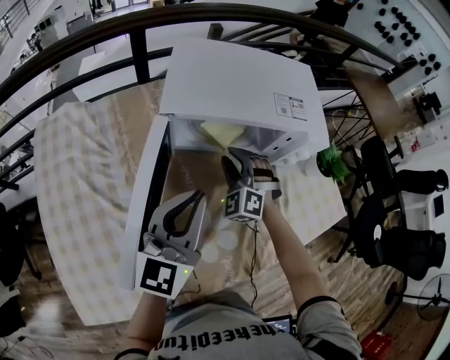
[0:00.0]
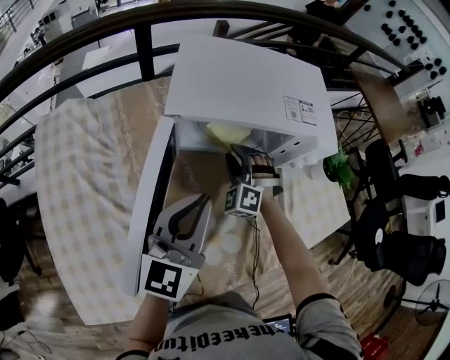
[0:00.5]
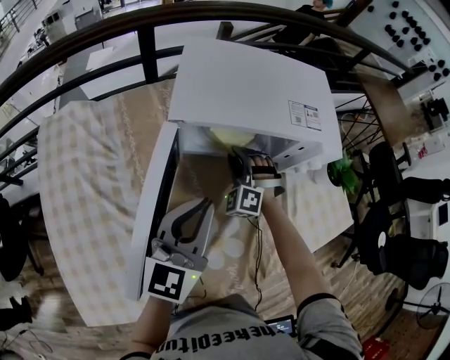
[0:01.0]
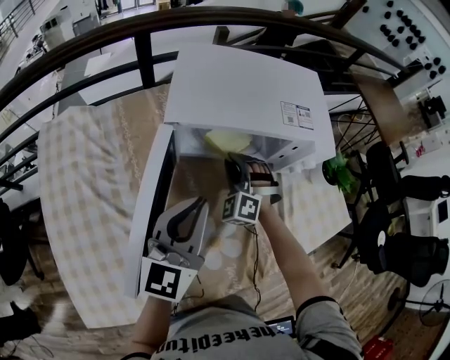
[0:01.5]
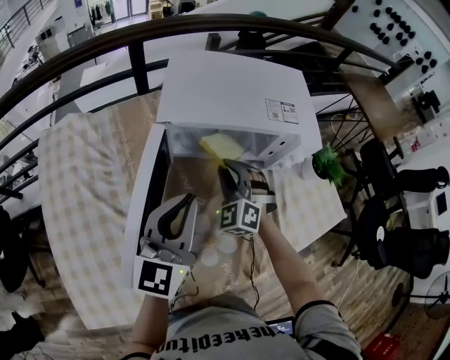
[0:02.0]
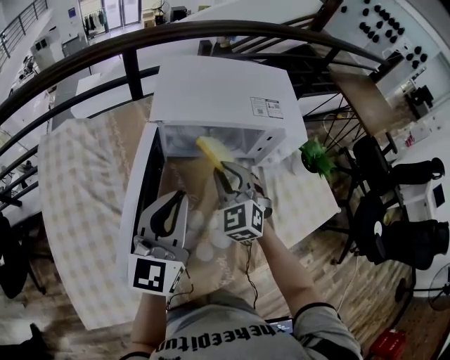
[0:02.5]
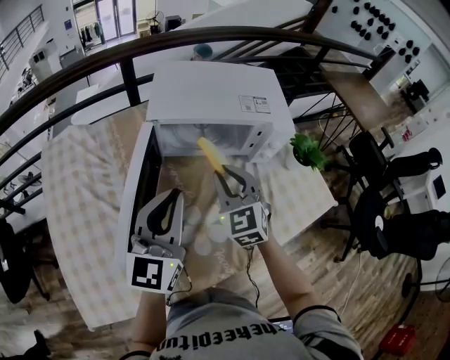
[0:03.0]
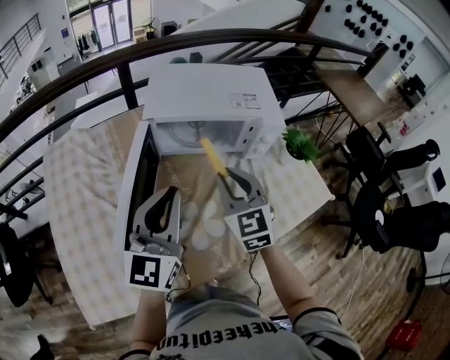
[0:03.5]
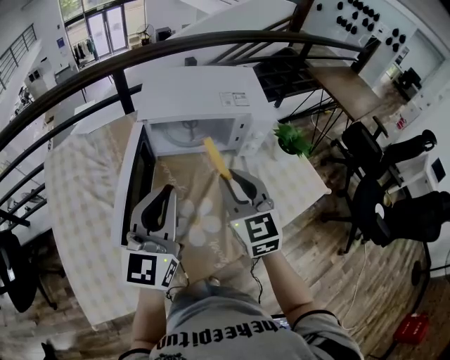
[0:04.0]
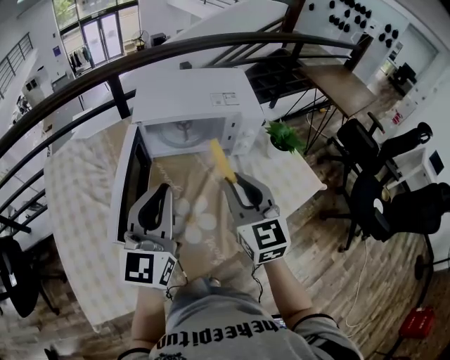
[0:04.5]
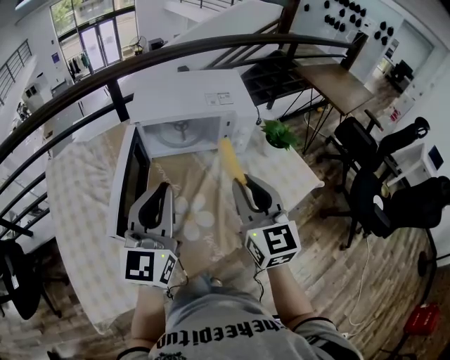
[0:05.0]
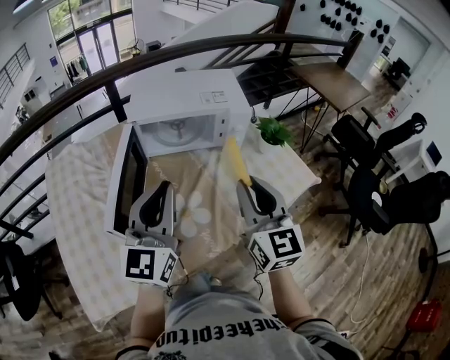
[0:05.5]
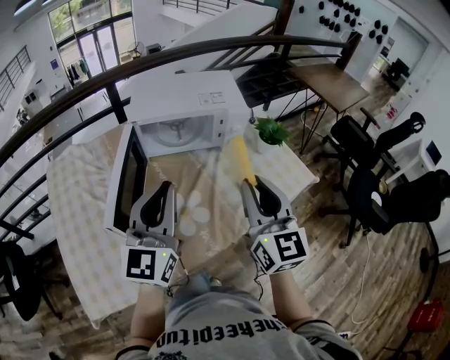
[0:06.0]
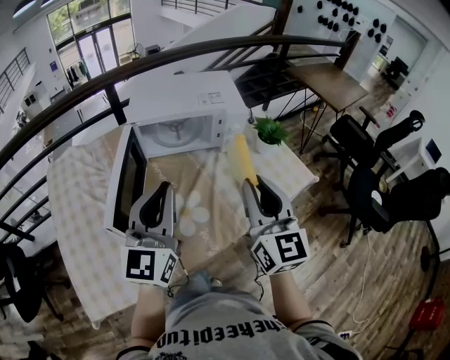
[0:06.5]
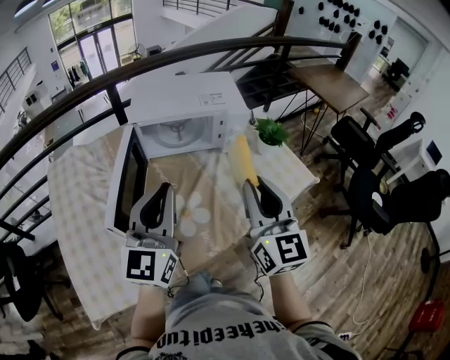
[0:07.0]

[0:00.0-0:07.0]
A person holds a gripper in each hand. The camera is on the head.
0:00.0 to 0:02.0: The grippers stay close to where they were, moving slightly.
0:02.0 to 0:03.5: The left gripper heads upward and backward, covering some 10 cm; the right gripper shifts approximately 15 cm upward and backward, and swivels approximately 40 degrees.
0:03.5 to 0:05.0: The right gripper goes roughly 15 cm backward, to the right and upward, while the left gripper travels backward by some 5 cm.
0:05.0 to 0:07.0: The right gripper shifts by about 5 cm.

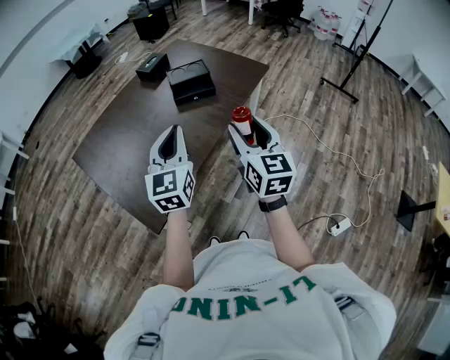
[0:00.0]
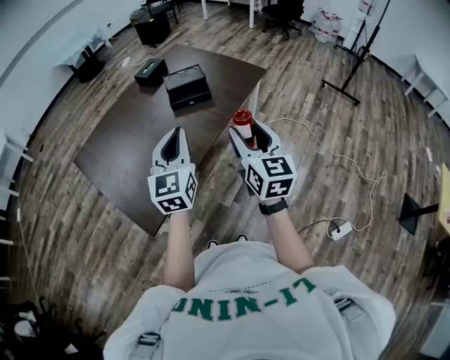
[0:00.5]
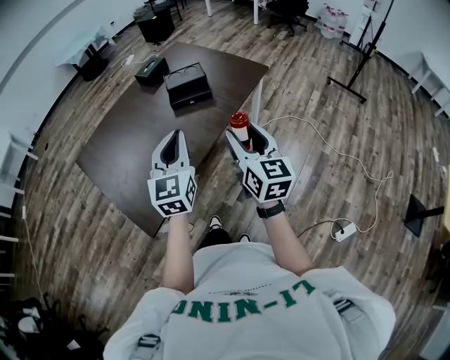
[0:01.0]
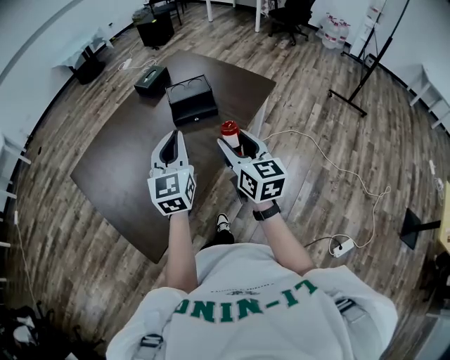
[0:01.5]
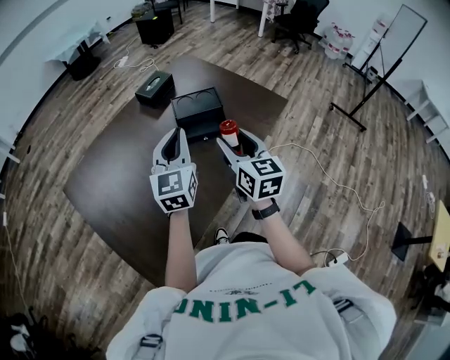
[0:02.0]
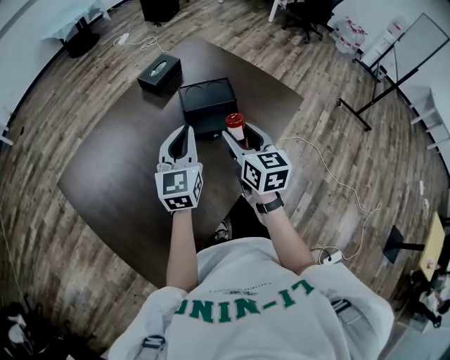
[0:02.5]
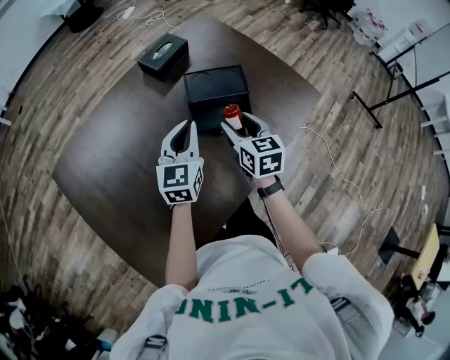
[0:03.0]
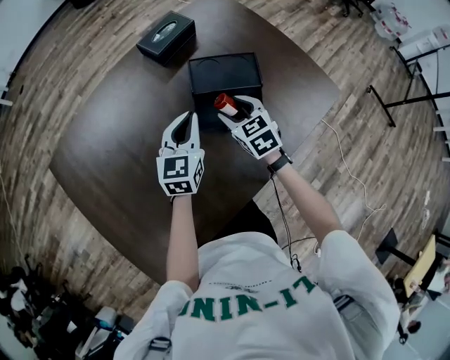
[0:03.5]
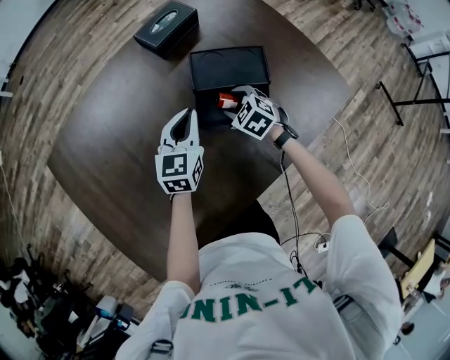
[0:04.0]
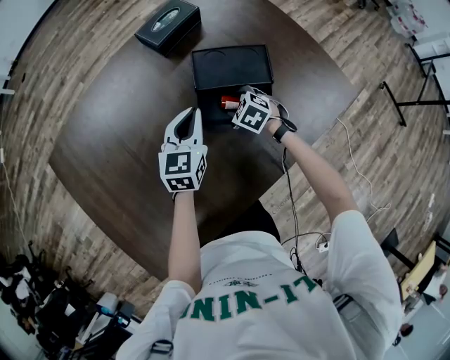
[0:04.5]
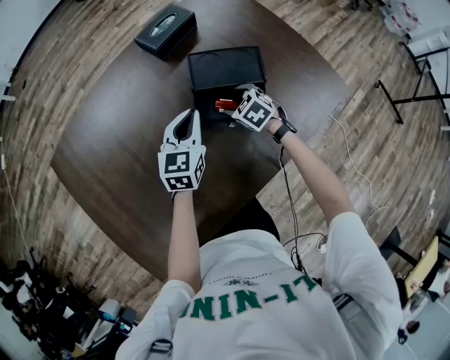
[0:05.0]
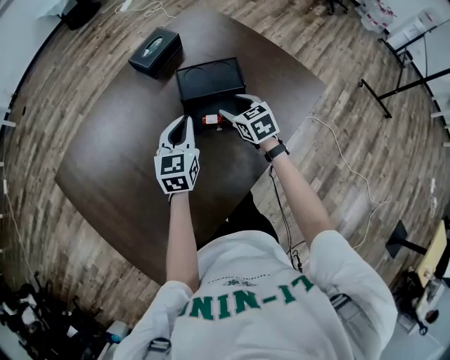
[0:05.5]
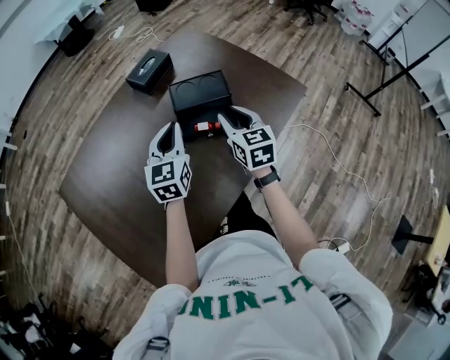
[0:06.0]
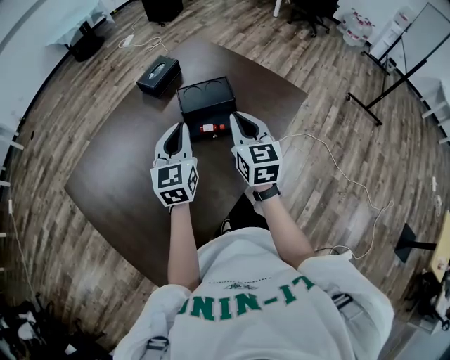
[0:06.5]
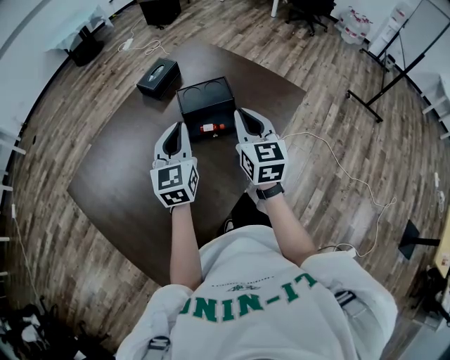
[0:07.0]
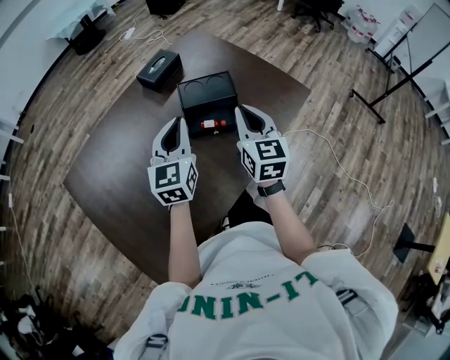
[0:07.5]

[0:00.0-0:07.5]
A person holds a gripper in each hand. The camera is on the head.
0:00.0 to 0:02.0: Both grippers travel together forward, approximately 30 cm.
0:02.0 to 0:04.0: The grippers both shift downward and forward by approximately 40 cm. The right gripper tips its fingers downward by some 40 degrees. Meanwhile the left gripper changes its angle by about 20 degrees.
0:04.0 to 0:05.5: The right gripper moves upward, about 10 cm, and changes its angle by roughly 40 degrees. Meanwhile the left gripper goes about 10 cm upward and backward.
0:05.5 to 0:07.5: Both grippers move upward and backward, approximately 20 cm. The right gripper changes its angle by some 30 degrees, and closes.

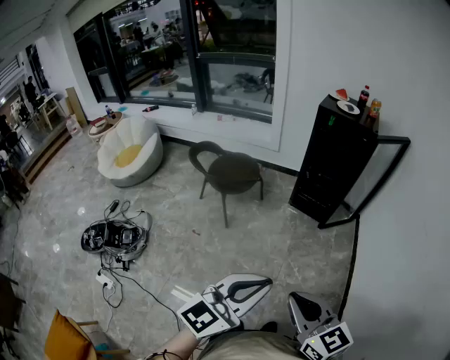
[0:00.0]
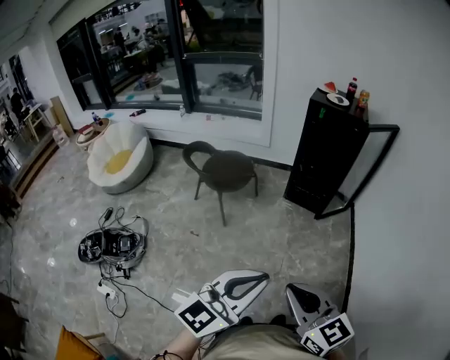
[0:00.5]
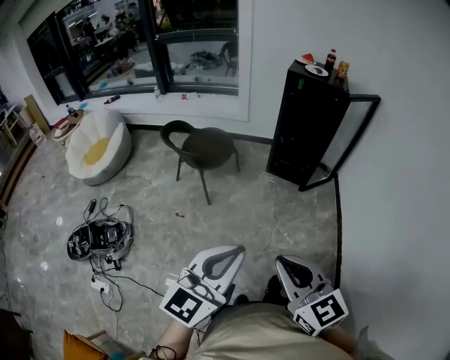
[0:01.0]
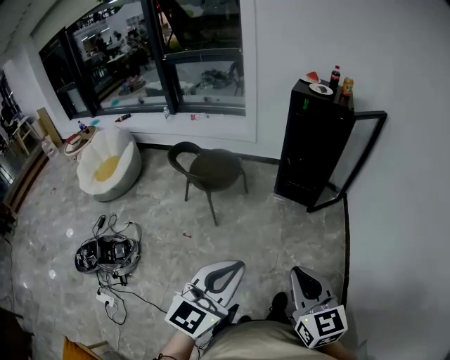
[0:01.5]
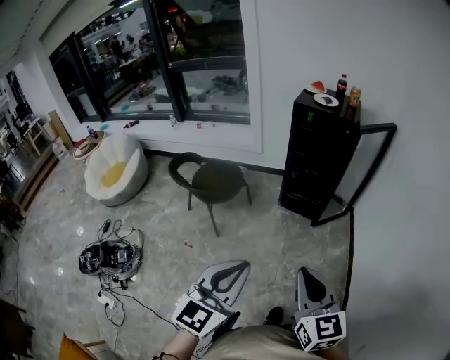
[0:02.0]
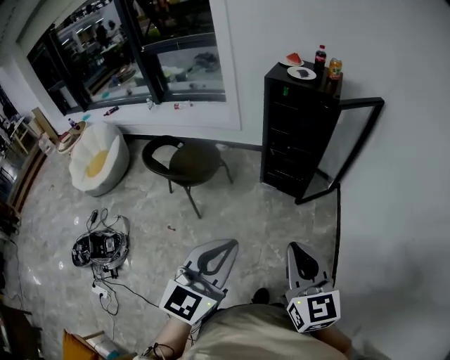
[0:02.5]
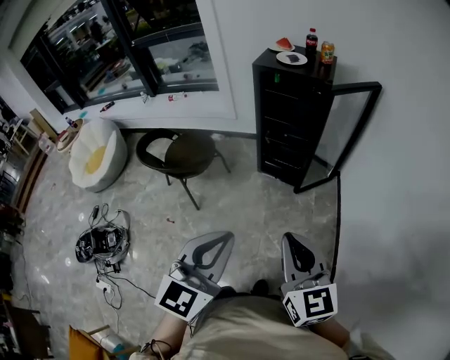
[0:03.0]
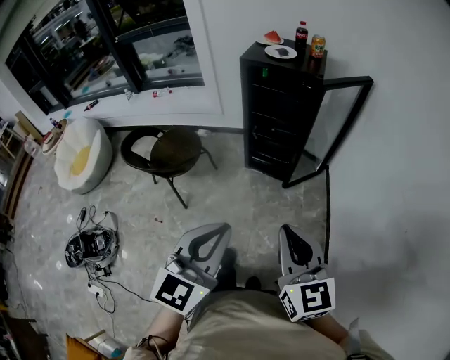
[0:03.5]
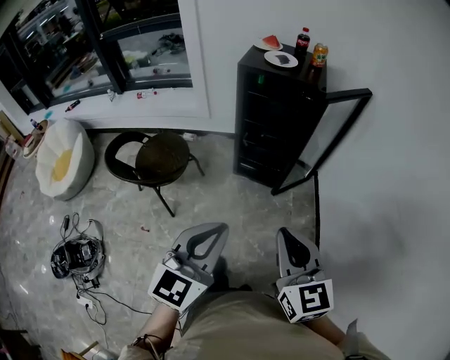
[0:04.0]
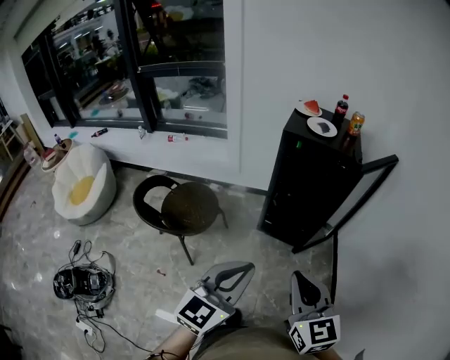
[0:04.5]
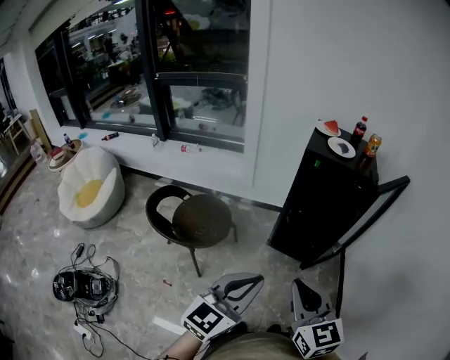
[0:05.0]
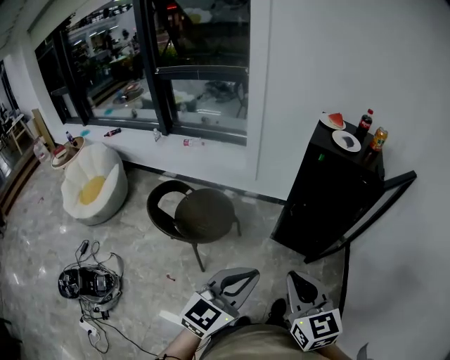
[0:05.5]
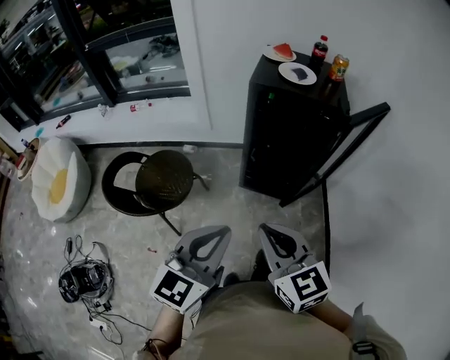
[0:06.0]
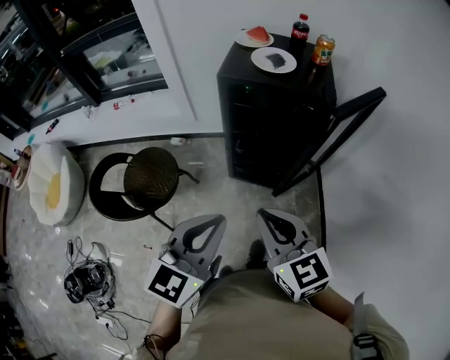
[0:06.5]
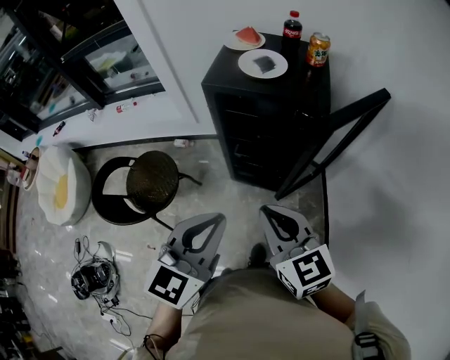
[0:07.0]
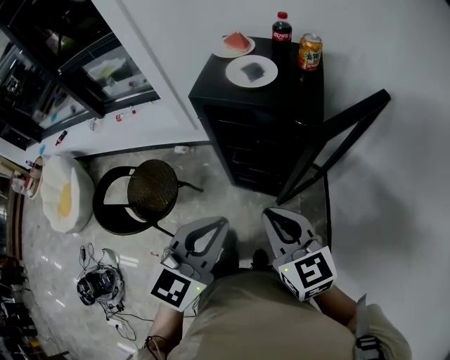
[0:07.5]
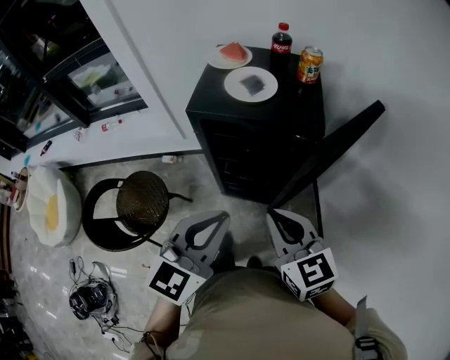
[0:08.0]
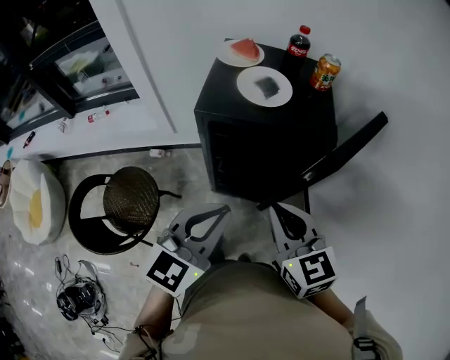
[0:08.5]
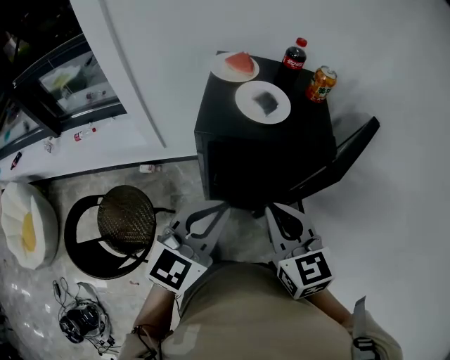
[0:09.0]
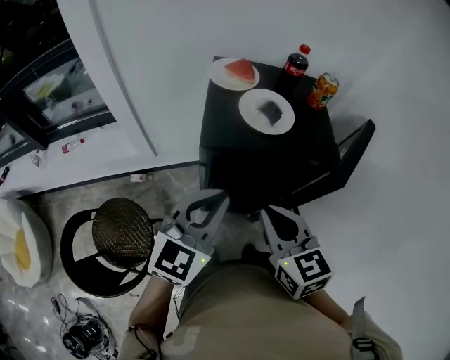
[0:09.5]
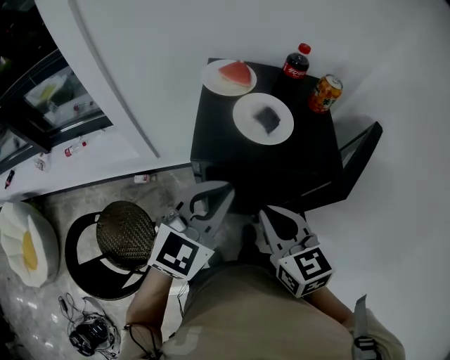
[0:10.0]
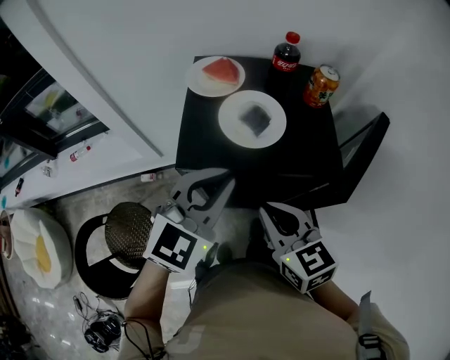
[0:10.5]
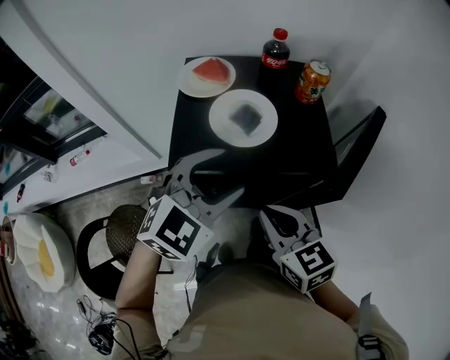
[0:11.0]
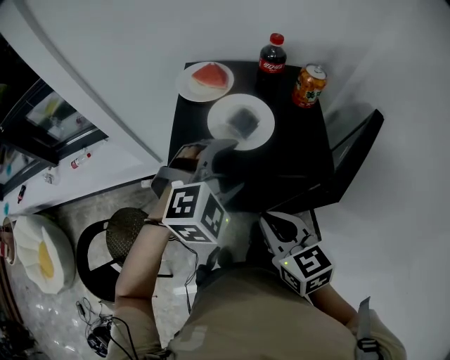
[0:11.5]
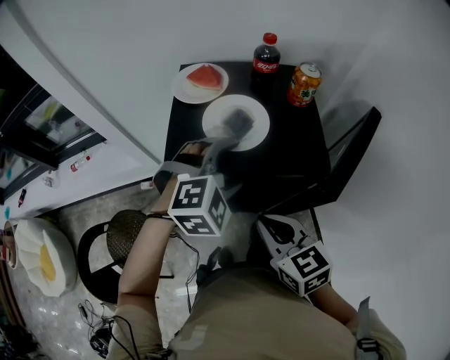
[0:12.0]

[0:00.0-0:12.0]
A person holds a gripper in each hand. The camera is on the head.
0:00.0 to 0:02.0: The right gripper heads forward and to the right, covering roughly 15 cm, and rotates approximately 20 degrees, while the left gripper is displaced forward by some 10 cm.
0:02.0 to 0:04.0: Both grippers travel together forward, roughly 20 cm.
0:04.0 to 0:06.0: The two grippers go about 20 cm forward and to the left.
0:06.0 to 0:08.0: The grippers both shift forward and to the right by approximately 25 cm.
0:08.0 to 0:10.0: Both grippers travel together forward and to the left, approximately 20 cm.
0:10.0 to 0:12.0: The left gripper moves forward, to the right and downward, roughly 15 cm, tilts its fingers roughly 30 degrees downward, and opens, while the right gripper changes place by some 5 cm.
